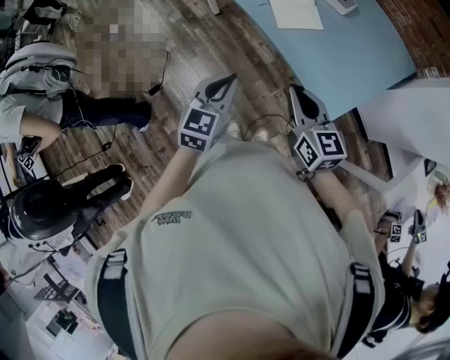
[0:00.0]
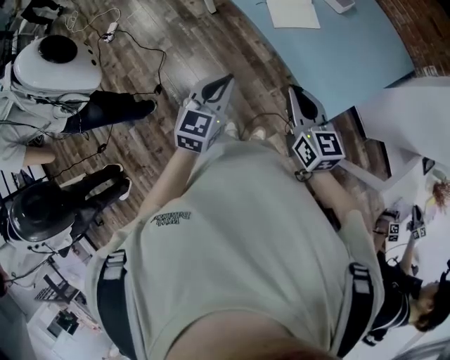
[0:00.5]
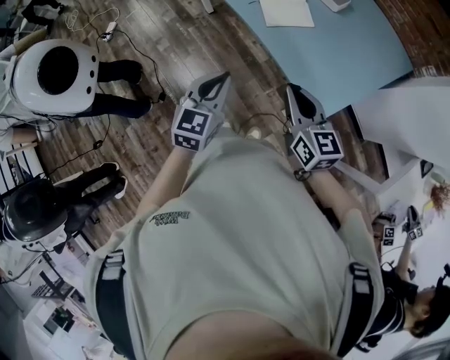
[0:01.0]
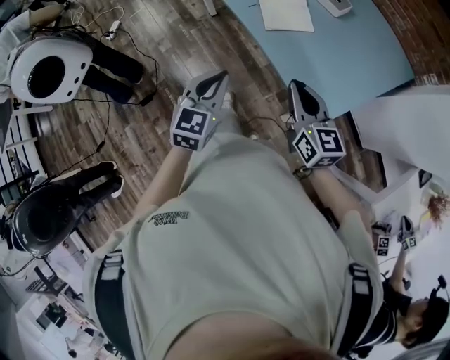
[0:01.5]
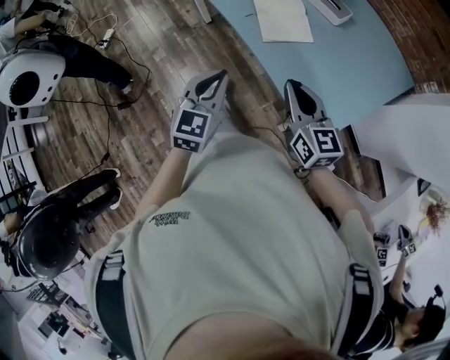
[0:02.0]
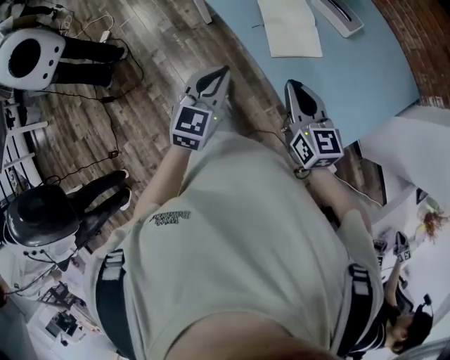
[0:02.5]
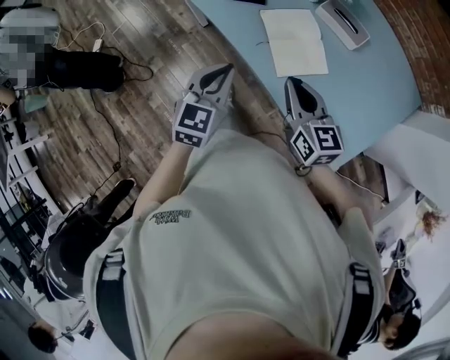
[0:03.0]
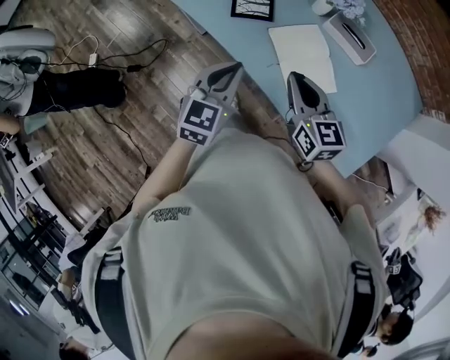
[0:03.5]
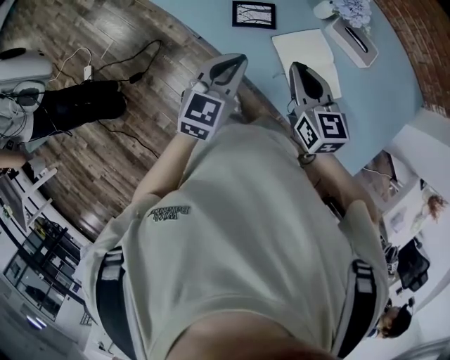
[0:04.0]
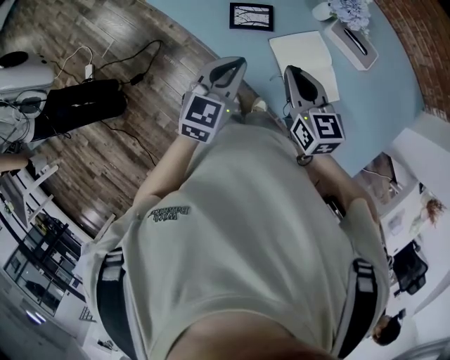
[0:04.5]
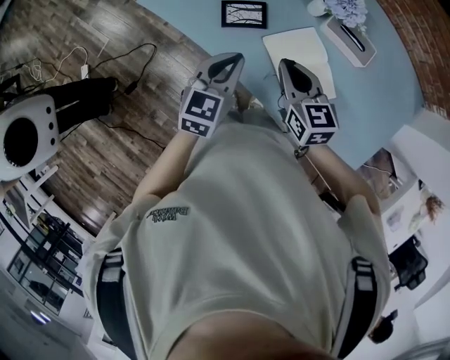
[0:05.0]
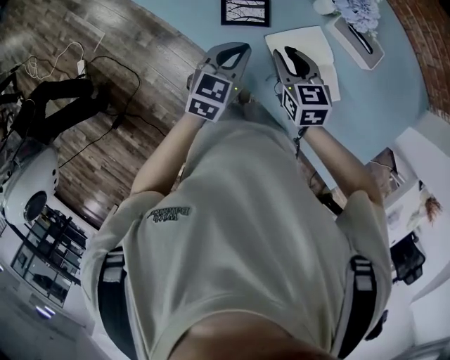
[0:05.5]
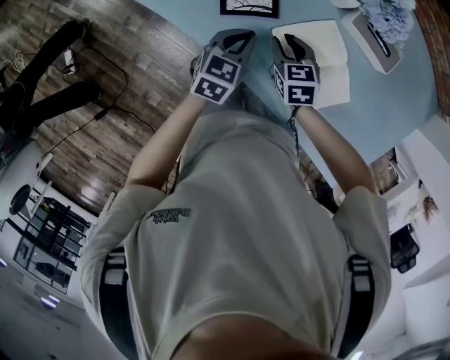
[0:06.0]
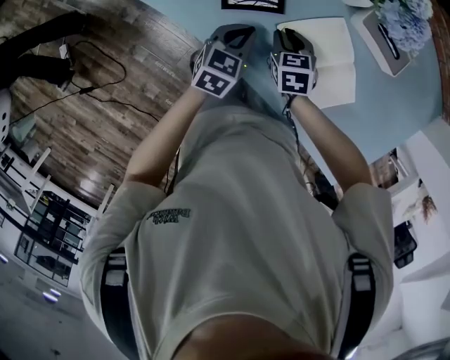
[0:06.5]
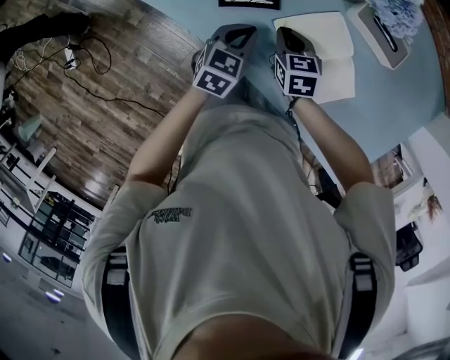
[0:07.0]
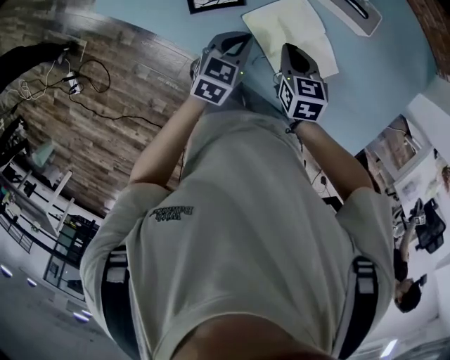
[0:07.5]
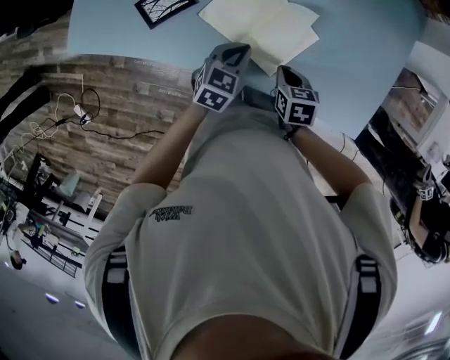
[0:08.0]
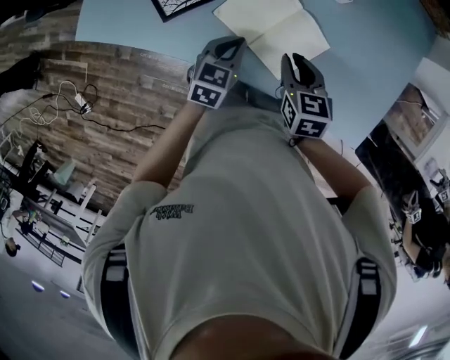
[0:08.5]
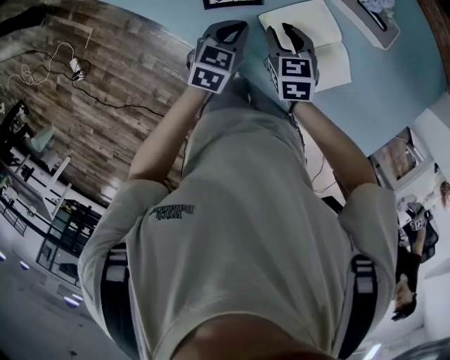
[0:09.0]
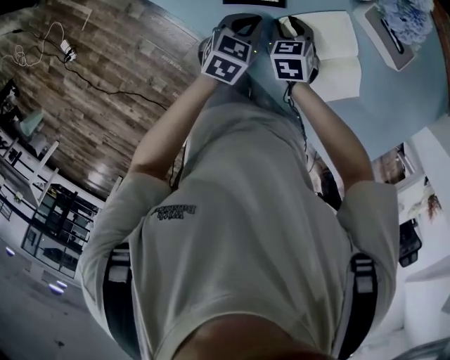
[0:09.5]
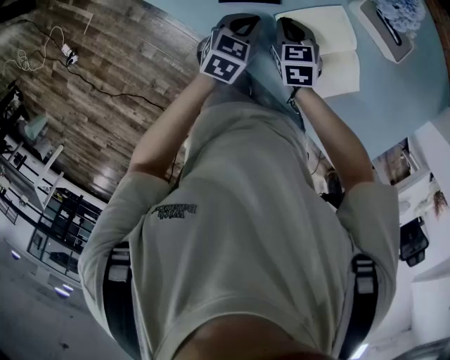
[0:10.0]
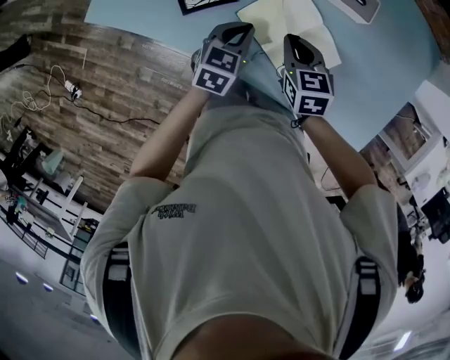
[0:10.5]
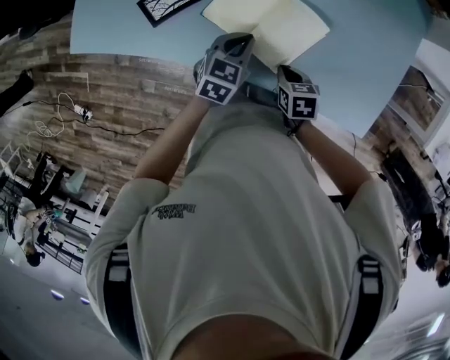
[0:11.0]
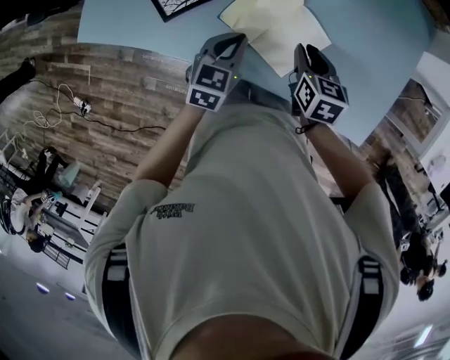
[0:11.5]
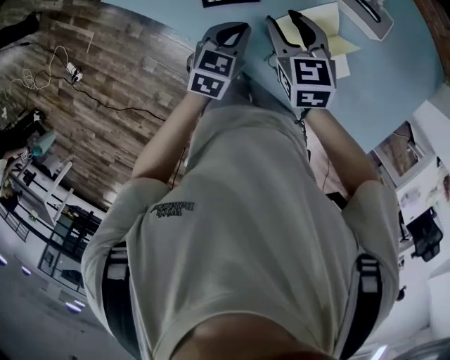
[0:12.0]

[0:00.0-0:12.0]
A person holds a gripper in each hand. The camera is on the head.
0:00.0 to 0:02.0: Both grippers travel together forward, approximately 10 cm.
0:02.0 to 0:04.0: The right gripper heads forward and to the left, covering about 35 cm. Meanwhile the left gripper moves forward, some 35 cm, and swivels about 20 degrees.
0:04.0 to 0:06.0: The grippers both shift downward and forward by some 20 cm. The right gripper swivels some 30 degrees, and opens up.
0:06.0 to 0:08.0: Both grippers travel together to the right and backward, about 20 cm. The left gripper swivels about 30 degrees. The right gripper turns by roughly 40 degrees, and closes up.
0:08.0 to 0:10.0: Both grippers move to the left and forward, about 20 cm. The left gripper changes its angle by about 20 degrees. Meanwhile the right gripper swivels about 40 degrees, and opens, then closes once more.
0:10.0 to 0:12.0: The left gripper heads upward, covering roughly 10 cm, and moves approximately 15 cm to the right and comes back; the right gripper moves upward, about 15 cm, travels to the right and back again, some 20 cm each way, and opens its fingers.

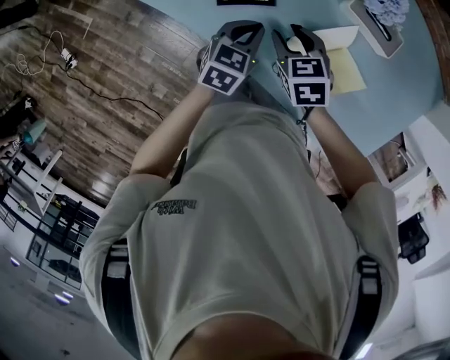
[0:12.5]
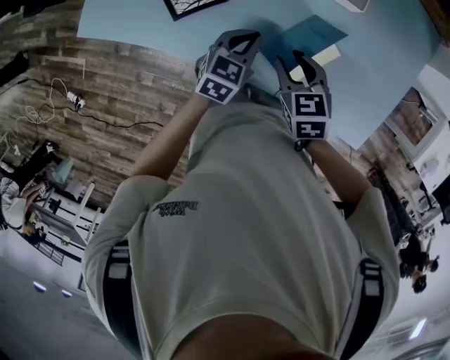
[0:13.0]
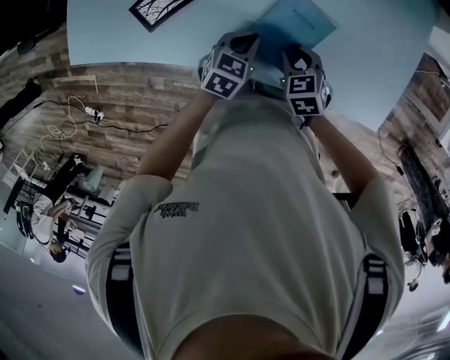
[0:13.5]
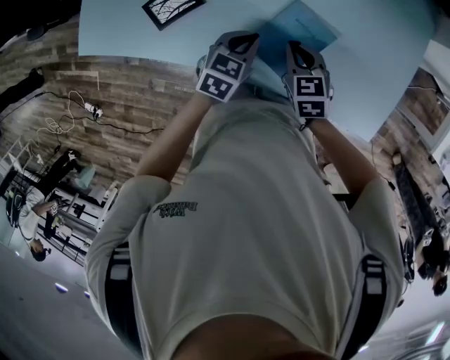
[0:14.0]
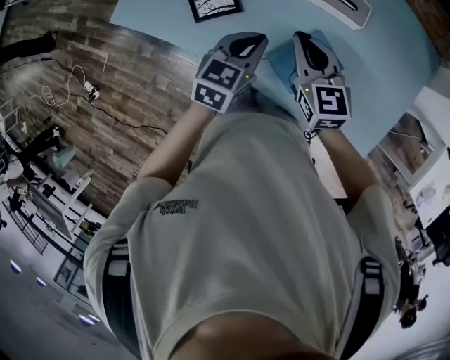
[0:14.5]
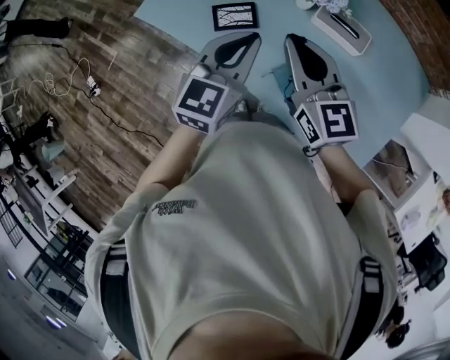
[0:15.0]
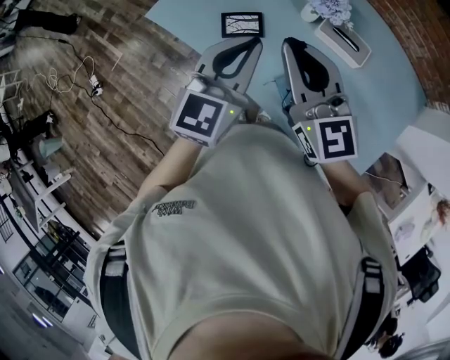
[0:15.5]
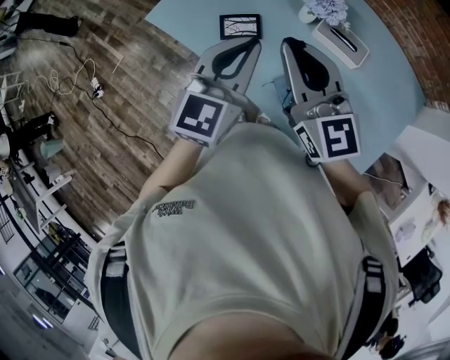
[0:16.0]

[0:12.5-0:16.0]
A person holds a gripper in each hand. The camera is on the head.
0:12.5 to 0:14.5: Both grippers move upward, roughly 10 cm. The right gripper swivels approximately 30 degrees, and closes up.
0:14.5 to 0:16.0: The right gripper shifts approximately 20 cm upward and to the left, and swivels approximately 30 degrees. The left gripper moves upward, some 20 cm, and turns by roughly 30 degrees.

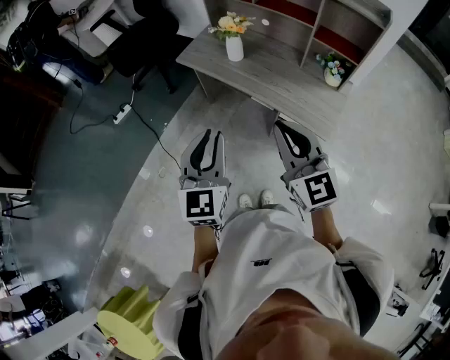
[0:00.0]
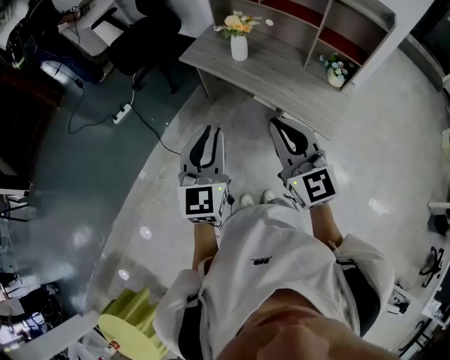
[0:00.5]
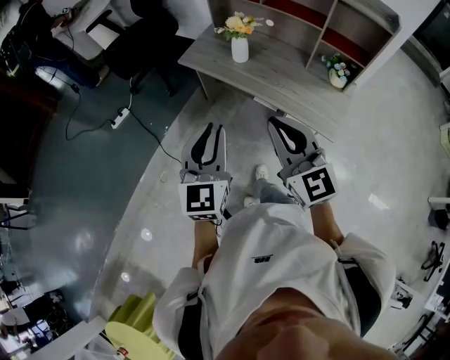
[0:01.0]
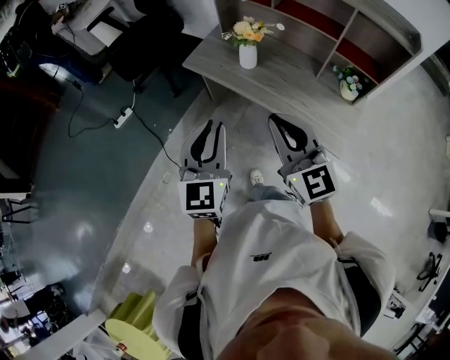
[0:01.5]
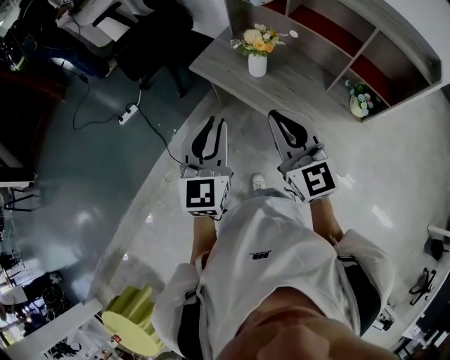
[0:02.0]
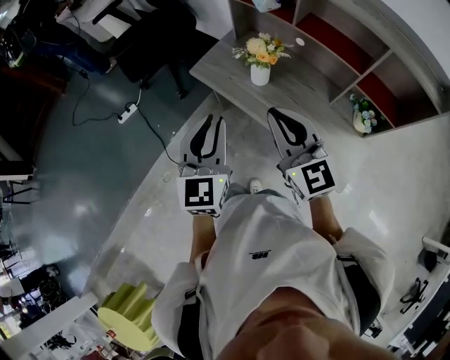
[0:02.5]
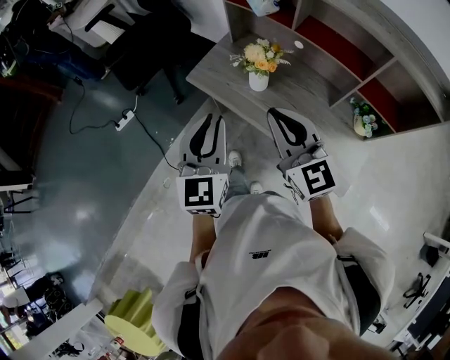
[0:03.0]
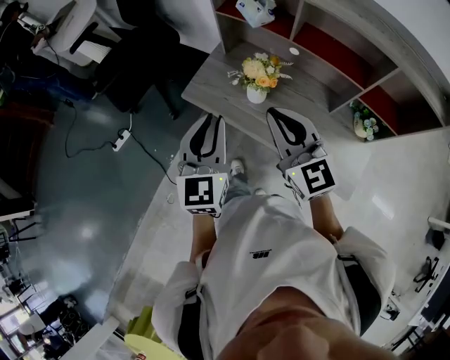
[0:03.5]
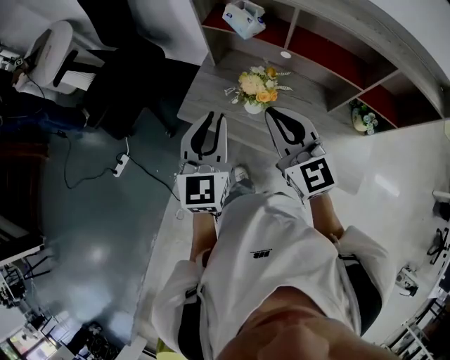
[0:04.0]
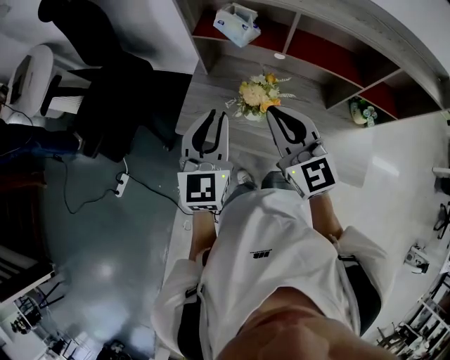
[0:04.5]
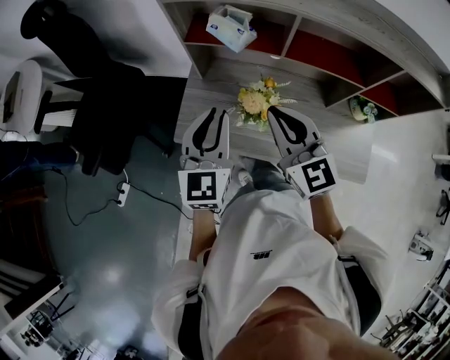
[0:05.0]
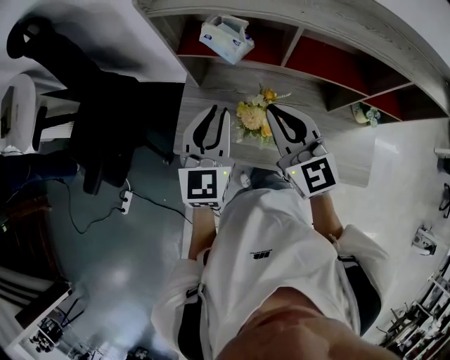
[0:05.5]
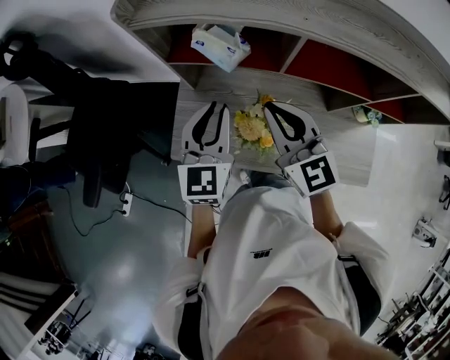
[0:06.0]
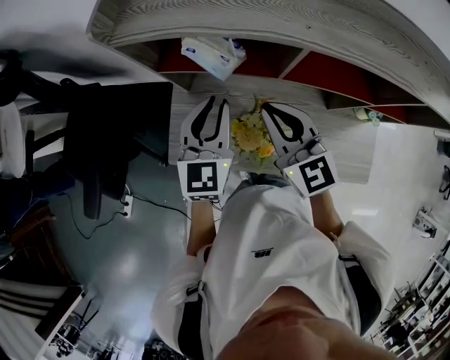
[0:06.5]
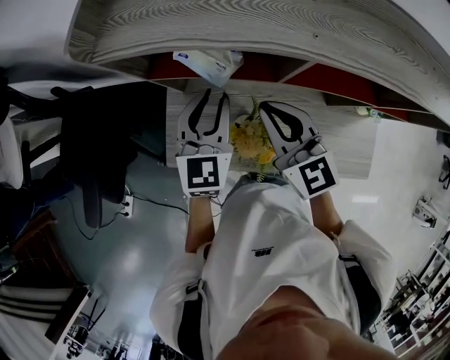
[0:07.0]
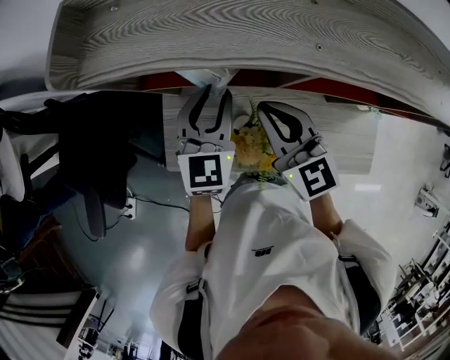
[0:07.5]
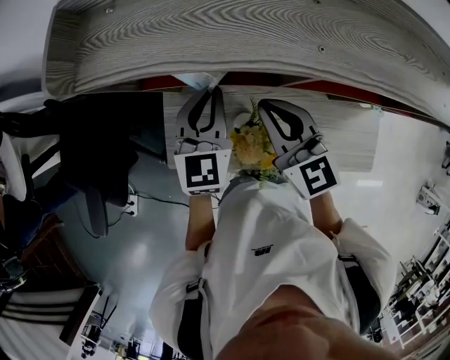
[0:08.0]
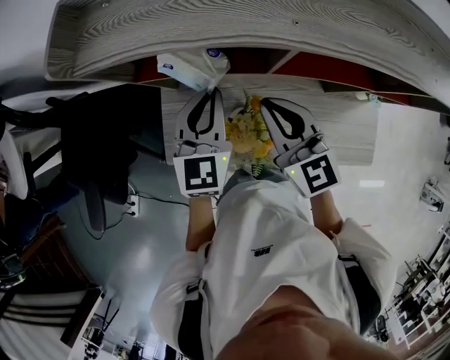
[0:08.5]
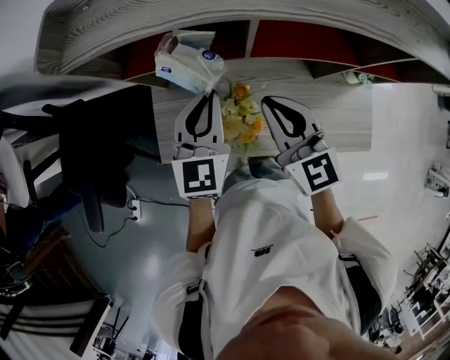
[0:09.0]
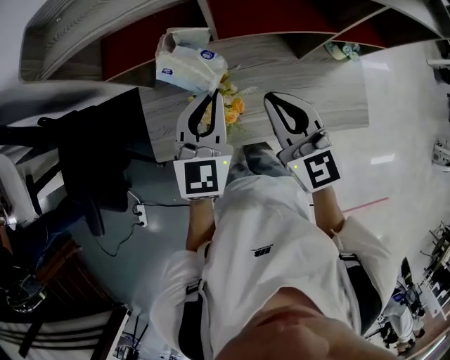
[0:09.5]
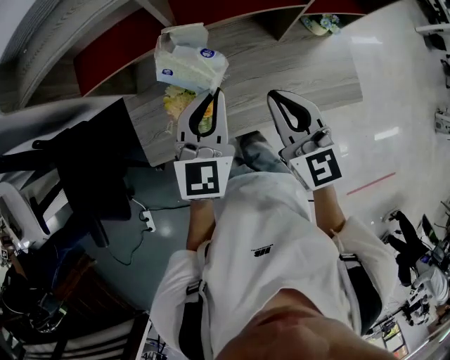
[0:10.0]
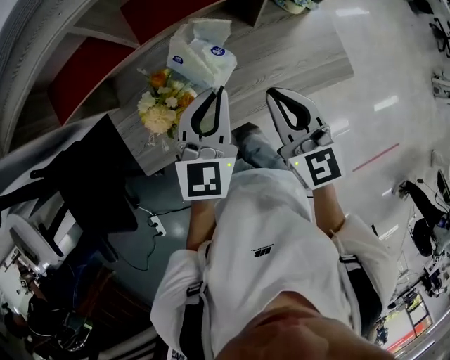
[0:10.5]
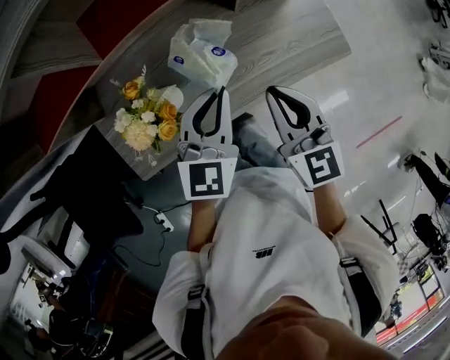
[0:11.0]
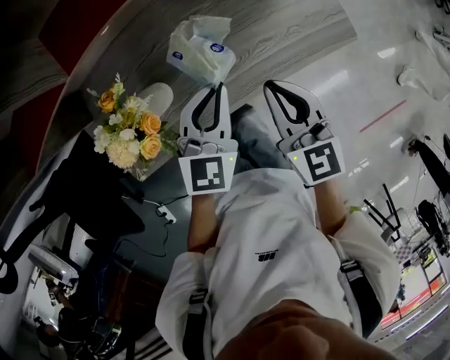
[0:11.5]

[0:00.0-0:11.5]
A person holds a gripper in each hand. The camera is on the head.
0:00.0 to 0:02.0: Both grippers move forward, some 20 cm.
0:02.0 to 0:04.0: Both grippers move forward, about 25 cm.
0:04.0 to 0:06.0: The grippers both shift forward by roughly 20 cm.
0:06.0 to 0:07.5: Both grippers travel together forward, roughly 10 cm.
0:07.5 to 0:09.5: Both grippers move backward and to the right, some 15 cm. The left gripper closes up.
0:09.5 to 0:11.5: The left gripper shifts by about 25 cm, and rotates approximately 30 degrees, while the right gripper moves about 20 cm, and turns by some 30 degrees.
